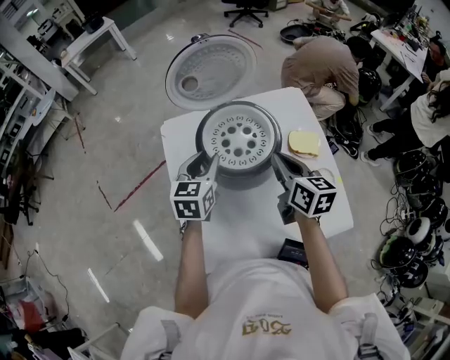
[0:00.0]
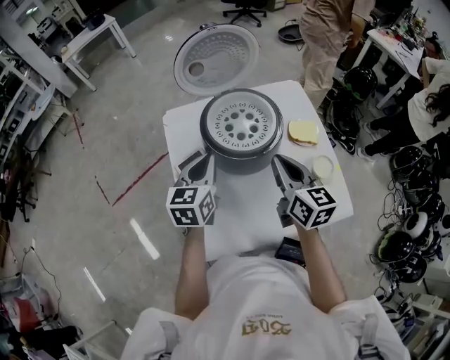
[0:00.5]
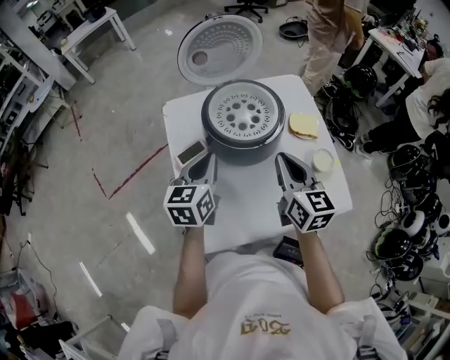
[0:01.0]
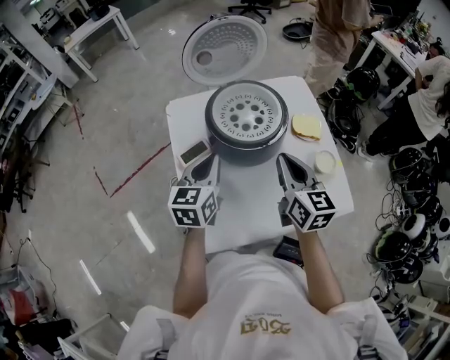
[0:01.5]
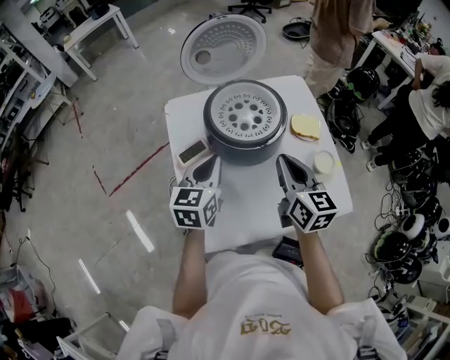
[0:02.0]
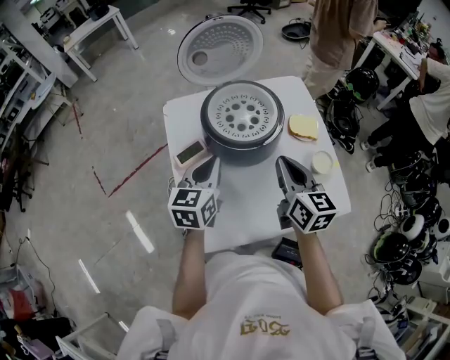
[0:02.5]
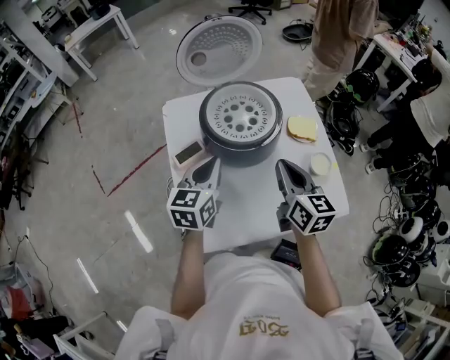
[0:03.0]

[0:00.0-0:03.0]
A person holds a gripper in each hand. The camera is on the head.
0:00.0 to 0:01.5: The grippers both shift backward by about 10 cm. The left gripper closes up.
0:01.5 to 0:03.0: There are only small adjustments of the grippers.

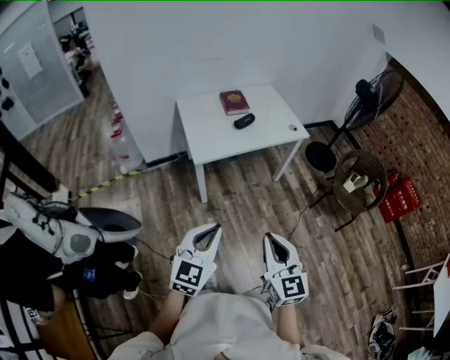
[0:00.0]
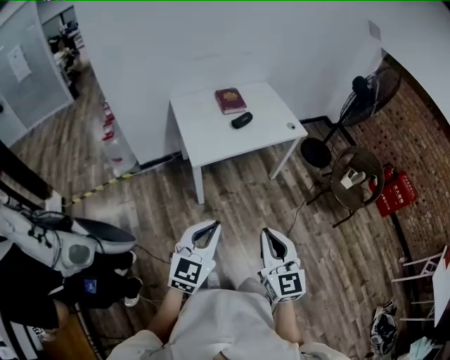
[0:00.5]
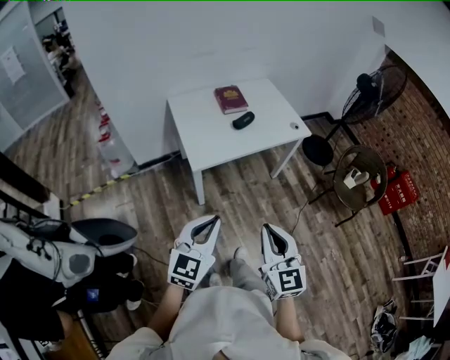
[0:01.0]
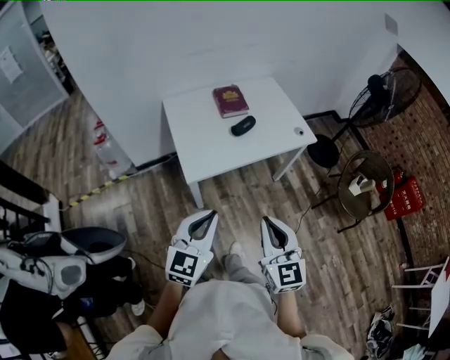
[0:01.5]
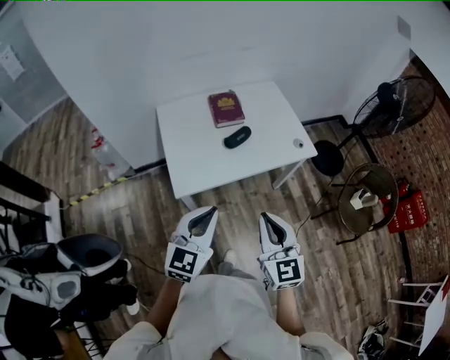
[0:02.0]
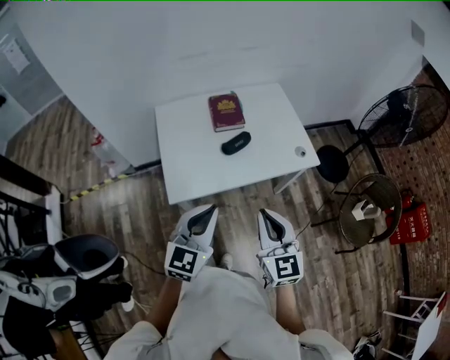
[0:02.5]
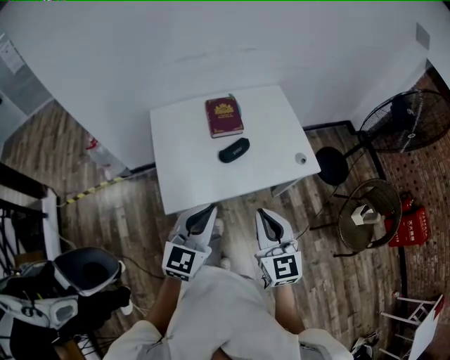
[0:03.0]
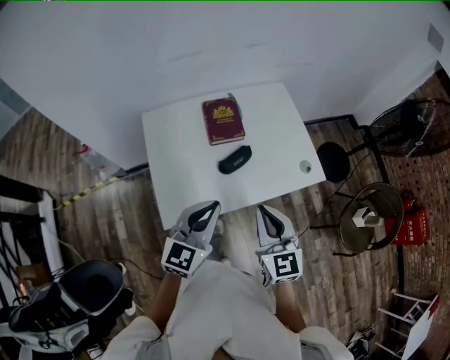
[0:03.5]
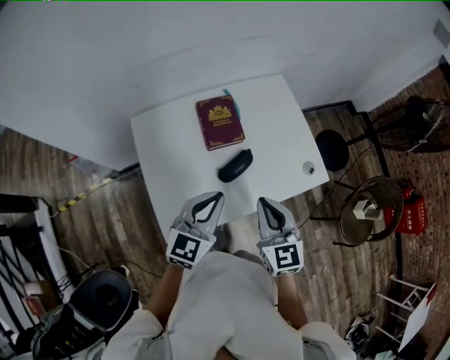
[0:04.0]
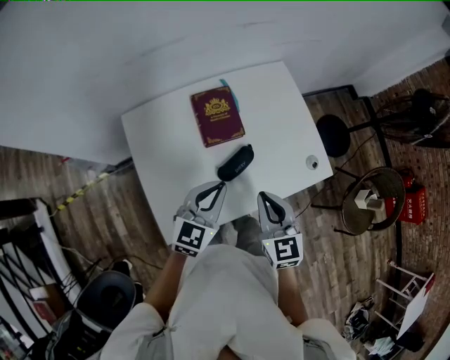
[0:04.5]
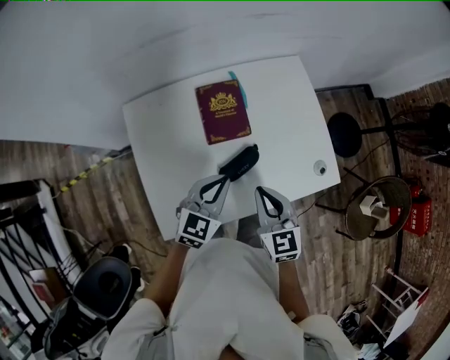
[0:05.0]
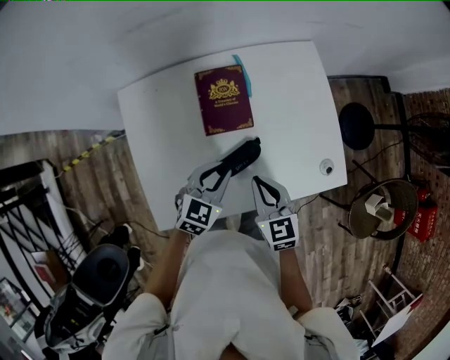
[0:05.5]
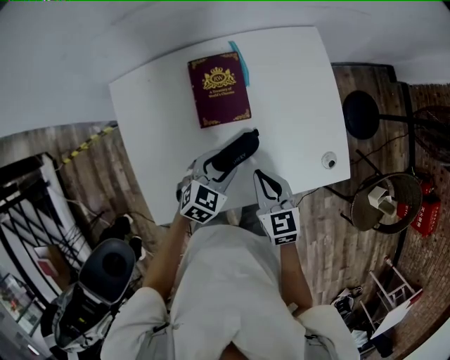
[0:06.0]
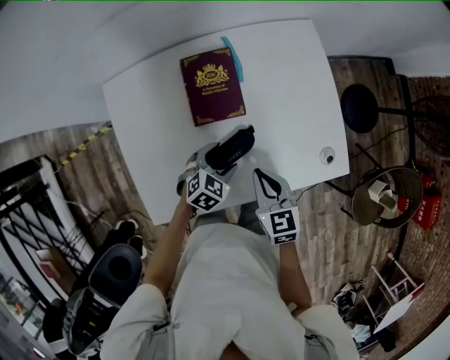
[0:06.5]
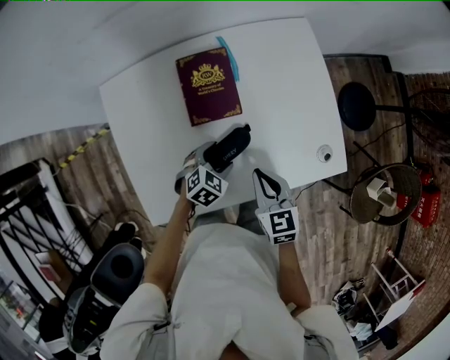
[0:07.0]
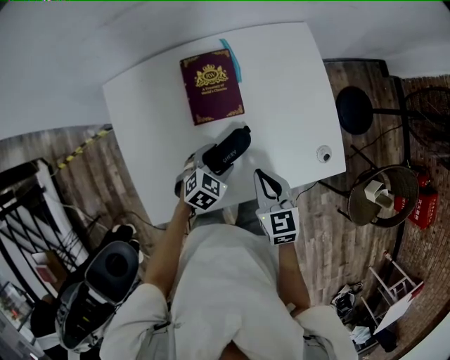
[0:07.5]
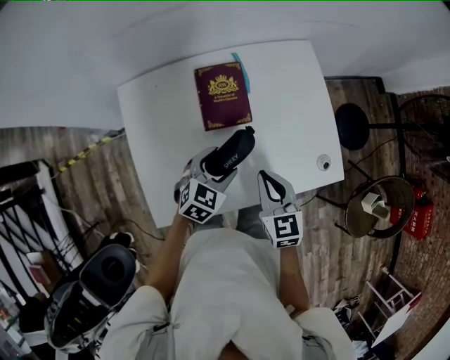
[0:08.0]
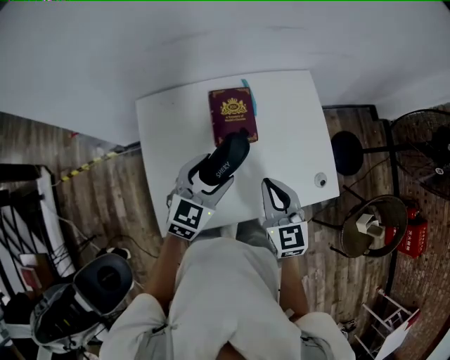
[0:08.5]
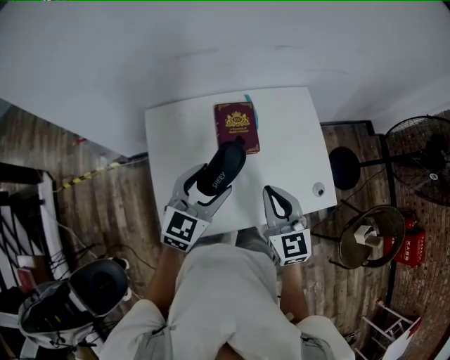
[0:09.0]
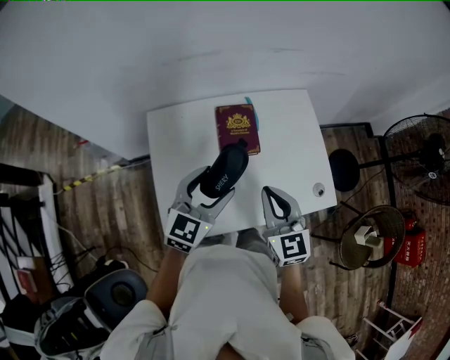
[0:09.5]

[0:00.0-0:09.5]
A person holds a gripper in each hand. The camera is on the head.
0:00.0 to 0:02.0: The two grippers go about 35 cm forward.
0:02.0 to 0:04.0: Both grippers move forward, roughly 30 cm.
0:04.0 to 0:05.5: The grippers both shift downward and forward by some 20 cm. The left gripper swivels approximately 20 degrees. Meanwhile the right gripper changes its angle by roughly 20 degrees.
0:05.5 to 0:07.5: The left gripper goes approximately 10 cm downward, changes its angle by some 20 degrees, and opens.
0:07.5 to 0:09.5: The left gripper moves upward, some 25 cm, and tilts its fingers some 40 degrees upward, while the right gripper travels upward by roughly 15 cm, and swivels roughly 20 degrees.

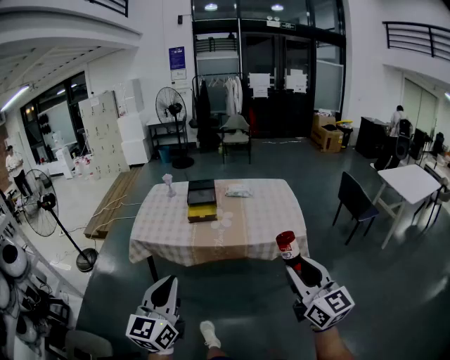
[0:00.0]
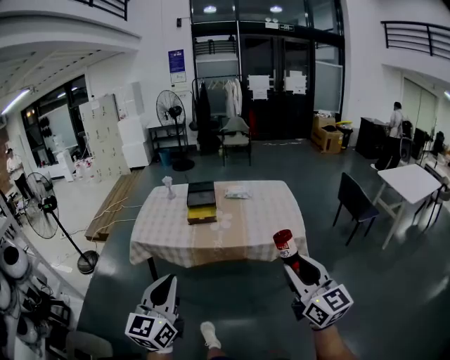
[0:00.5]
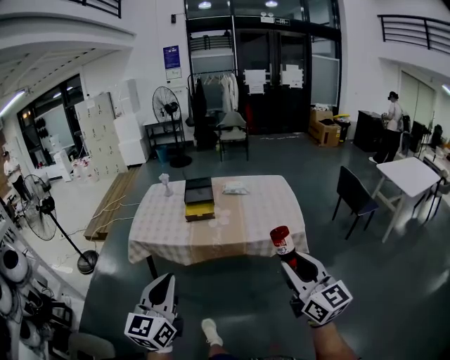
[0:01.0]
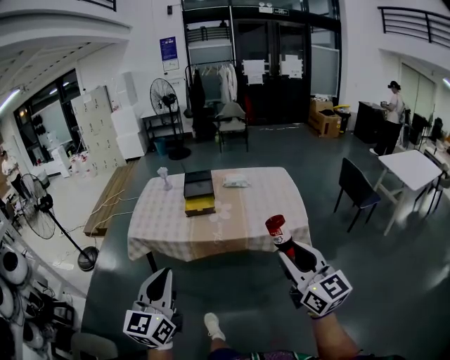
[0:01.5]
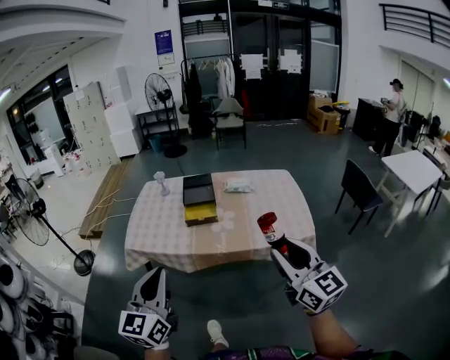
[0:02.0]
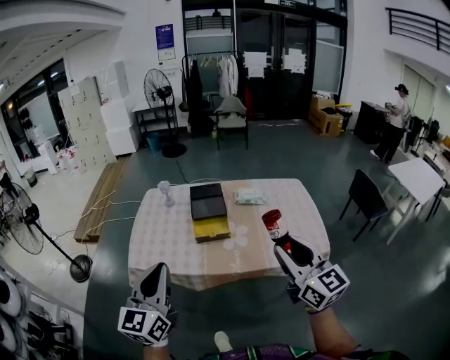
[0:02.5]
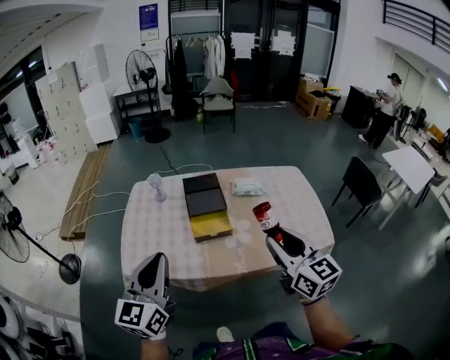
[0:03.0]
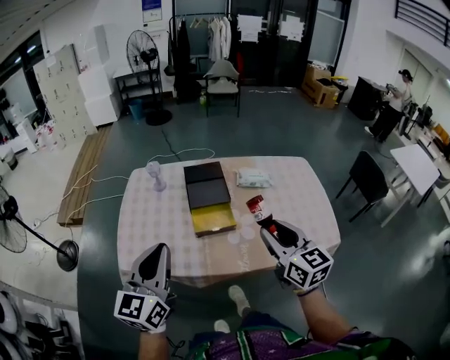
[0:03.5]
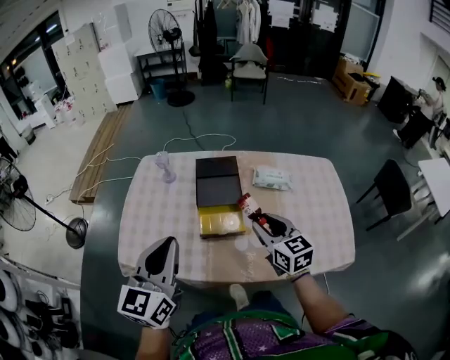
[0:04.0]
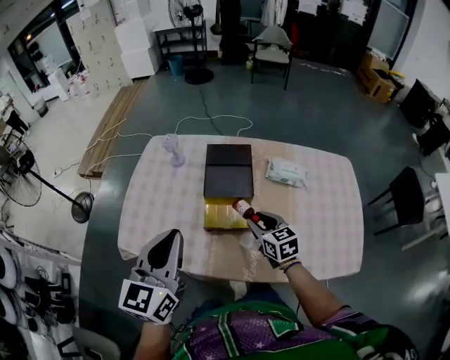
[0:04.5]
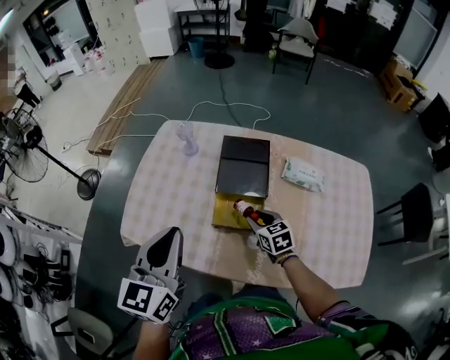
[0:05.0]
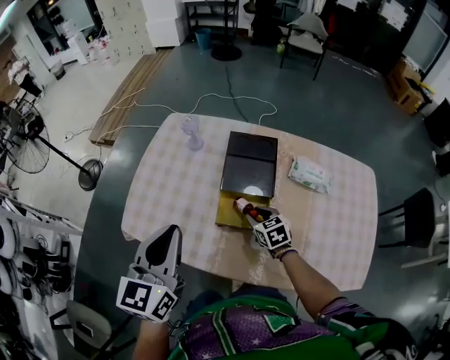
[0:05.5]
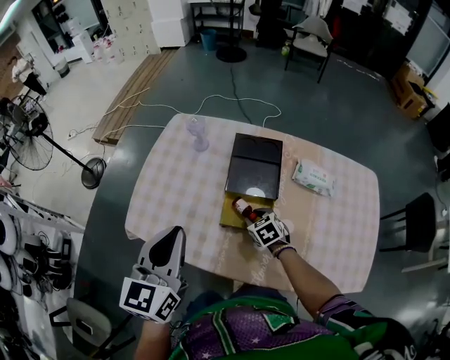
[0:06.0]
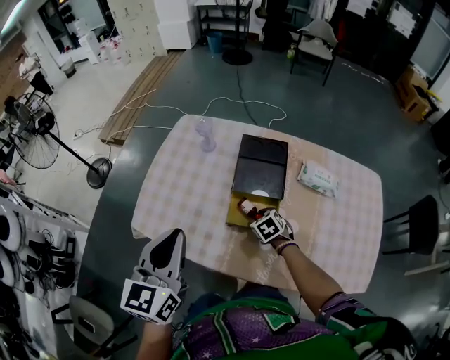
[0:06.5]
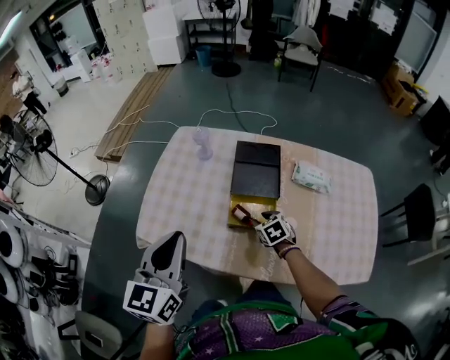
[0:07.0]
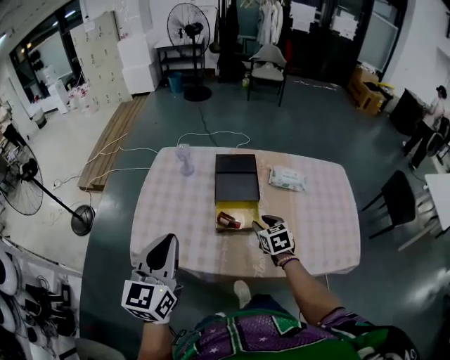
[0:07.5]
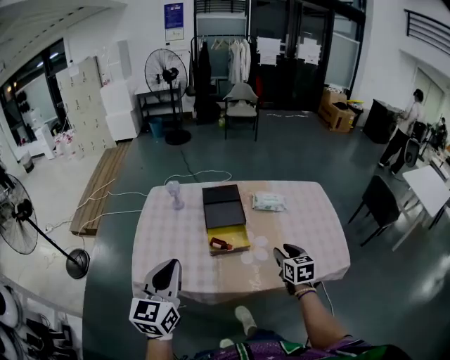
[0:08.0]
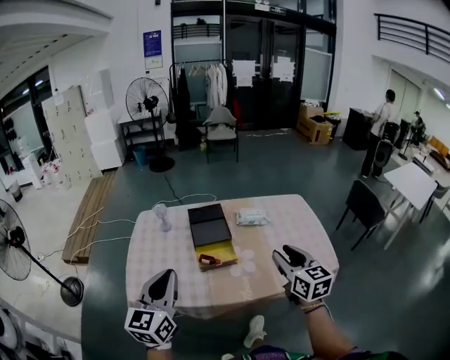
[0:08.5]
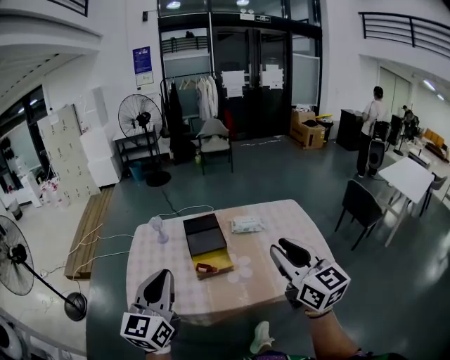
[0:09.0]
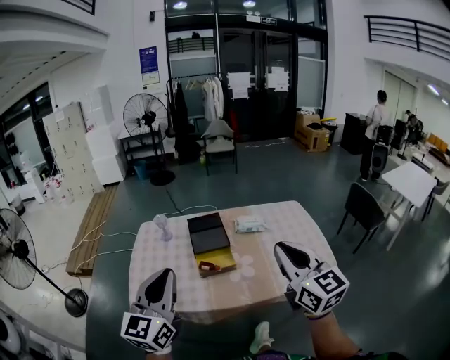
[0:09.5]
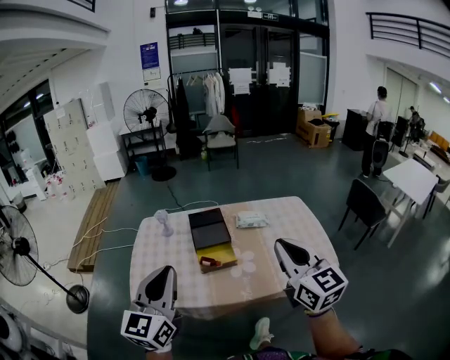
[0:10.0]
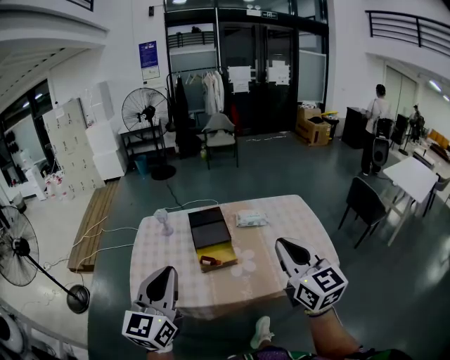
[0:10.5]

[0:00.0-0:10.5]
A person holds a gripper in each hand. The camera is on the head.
0:00.0 to 0:02.0: Both grippers move forward, some 15 cm.
0:02.0 to 0:04.0: The two grippers travel together, forward, about 50 cm. The right gripper travels downward by about 20 cm, and changes its angle by approximately 30 degrees.
0:04.0 to 0:06.5: The right gripper heads downward and forward, covering some 30 cm, and tilts its fingers some 40 degrees downward. Meanwhile the left gripper shifts approximately 5 cm forward.
0:06.5 to 0:08.5: The left gripper shifts by some 15 cm, and changes its angle by some 20 degrees, while the right gripper shifts about 35 cm upward, and tilts its fingers about 50 degrees upward.
0:08.5 to 0:10.5: The left gripper travels upward by approximately 5 cm. Meanwhile the right gripper heads upward and backward, covering some 15 cm, and closes its fingers.

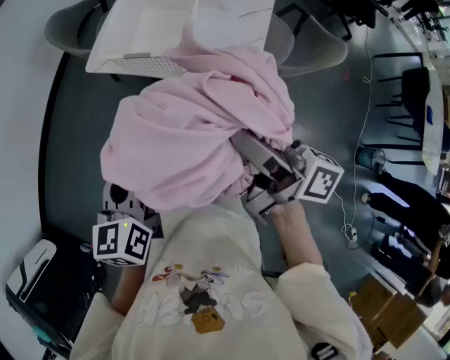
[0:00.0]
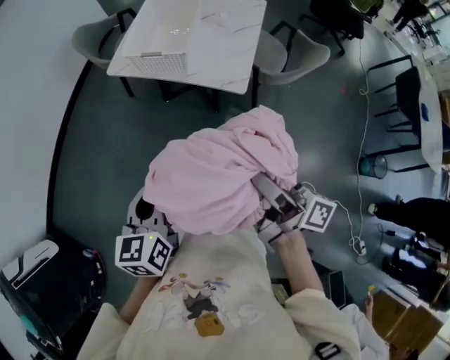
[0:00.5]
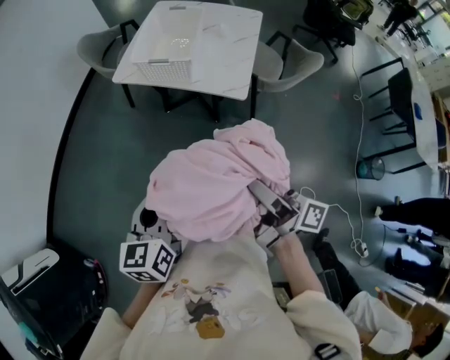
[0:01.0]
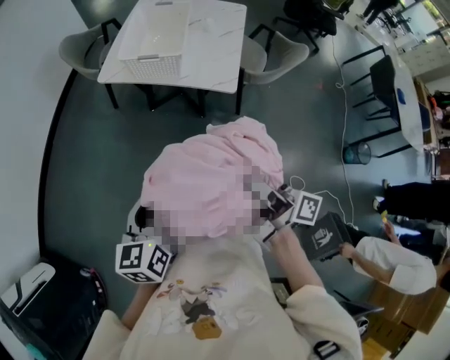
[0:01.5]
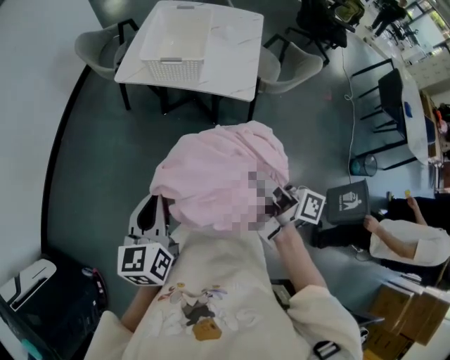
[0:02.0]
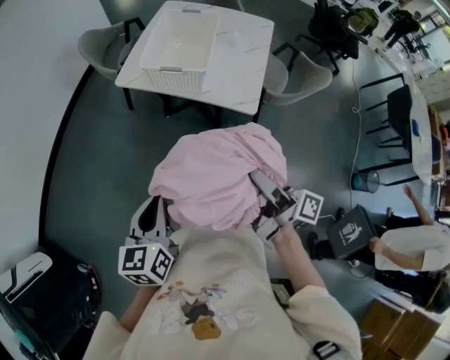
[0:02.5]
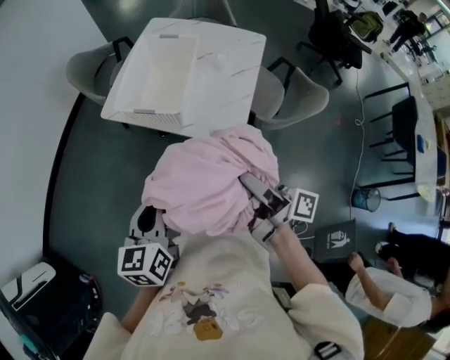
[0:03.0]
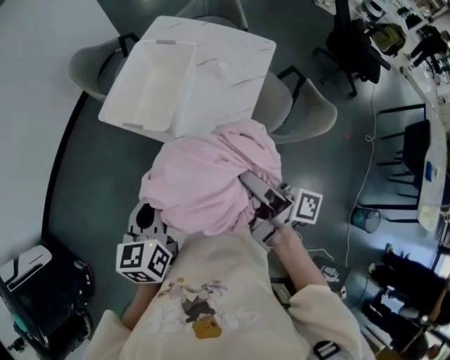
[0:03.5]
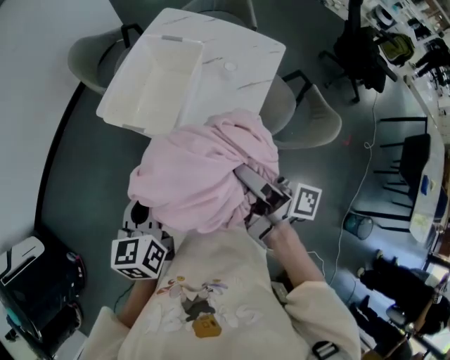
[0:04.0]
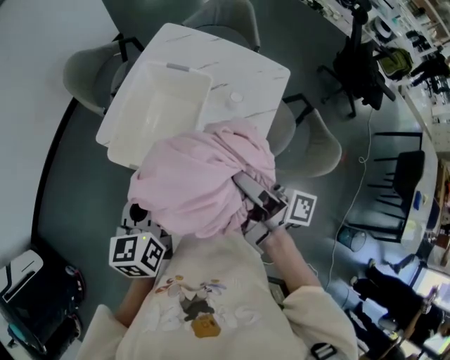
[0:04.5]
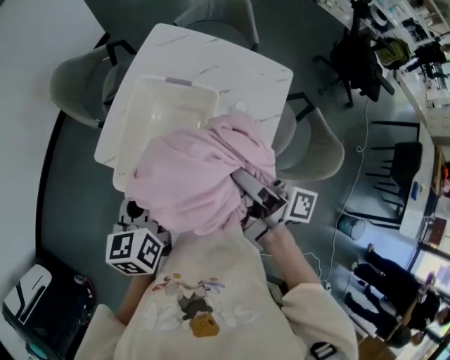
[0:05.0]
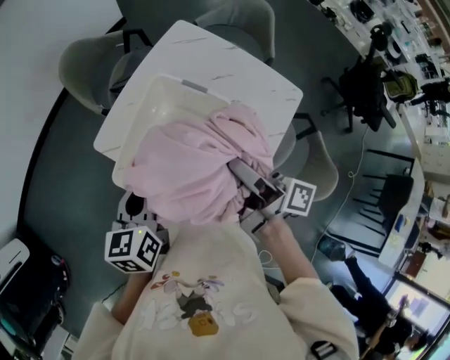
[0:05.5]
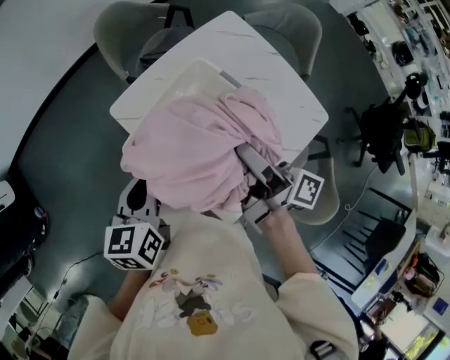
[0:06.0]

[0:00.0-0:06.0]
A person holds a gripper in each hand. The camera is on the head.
0:00.0 to 0:02.0: The right gripper moves backward, some 20 cm, while the left gripper heads backward and to the left, covering approximately 25 cm.
0:02.0 to 0:04.0: The two grippers go some 40 cm forward and to the right.
0:04.0 to 0:06.0: The two grippers go some 30 cm forward.
